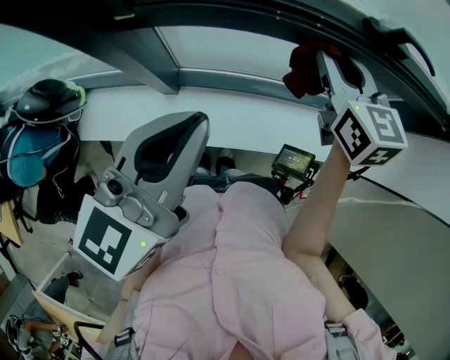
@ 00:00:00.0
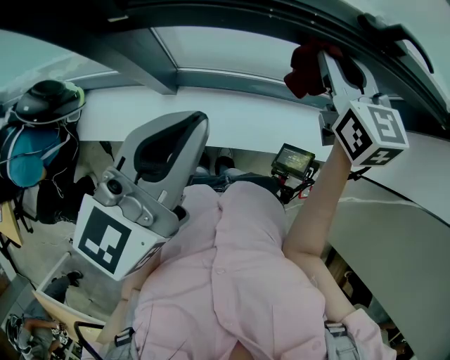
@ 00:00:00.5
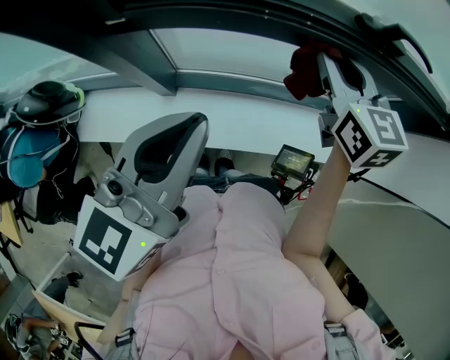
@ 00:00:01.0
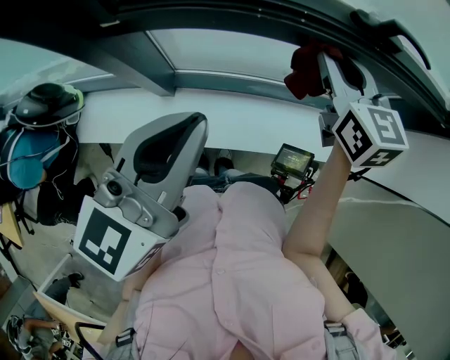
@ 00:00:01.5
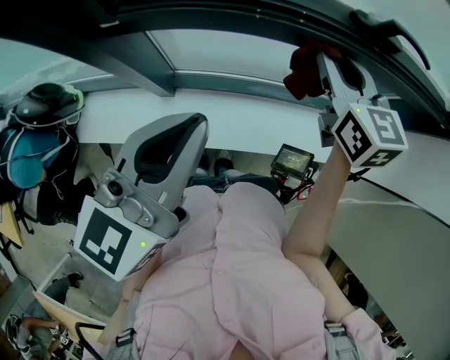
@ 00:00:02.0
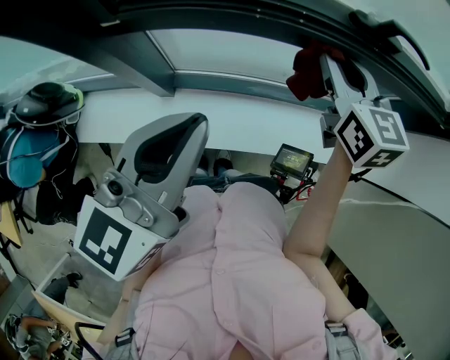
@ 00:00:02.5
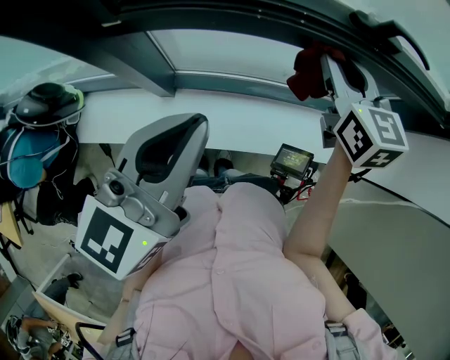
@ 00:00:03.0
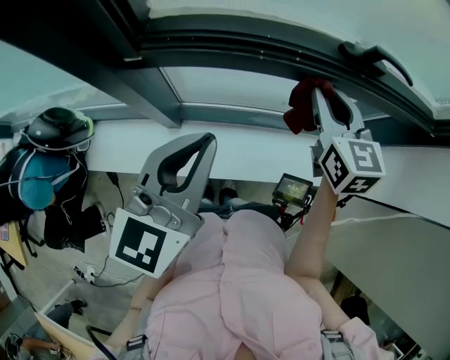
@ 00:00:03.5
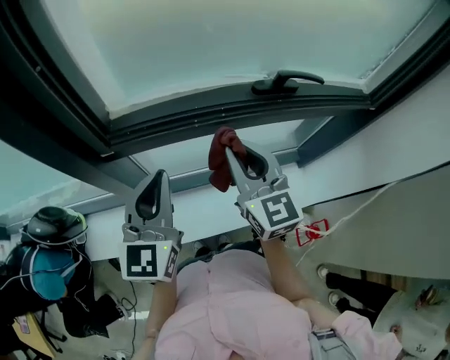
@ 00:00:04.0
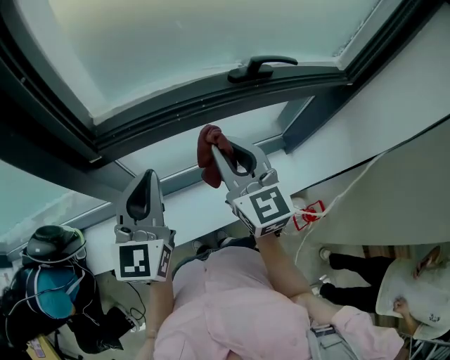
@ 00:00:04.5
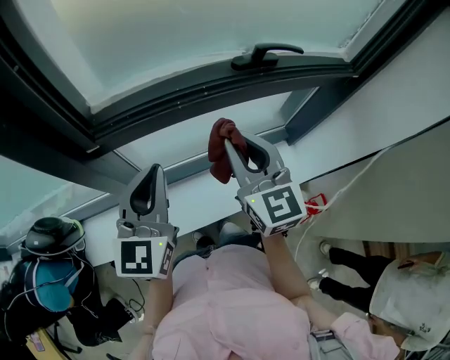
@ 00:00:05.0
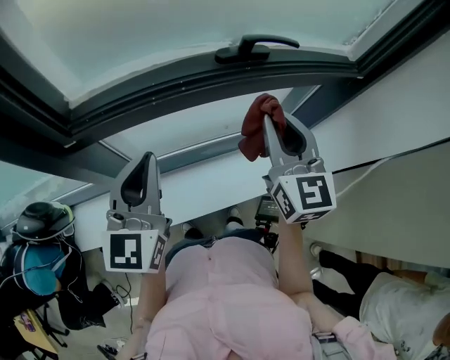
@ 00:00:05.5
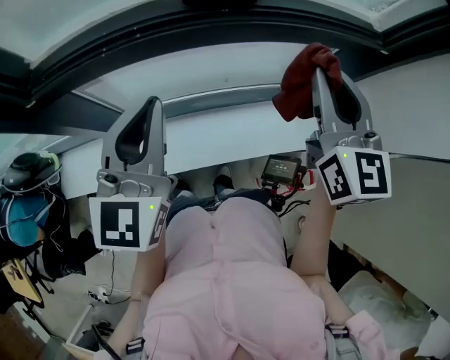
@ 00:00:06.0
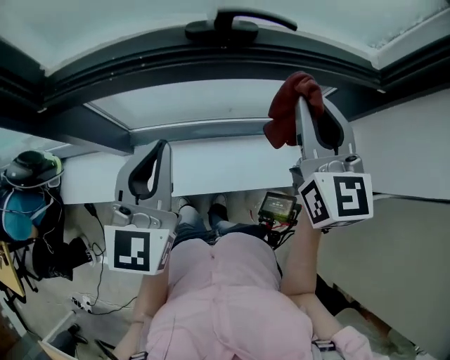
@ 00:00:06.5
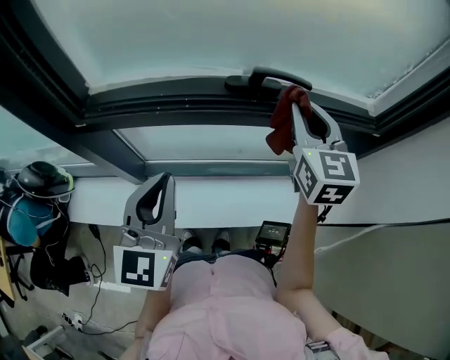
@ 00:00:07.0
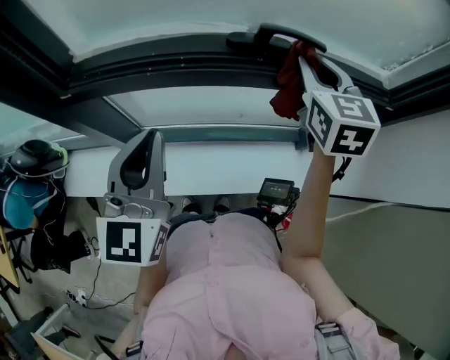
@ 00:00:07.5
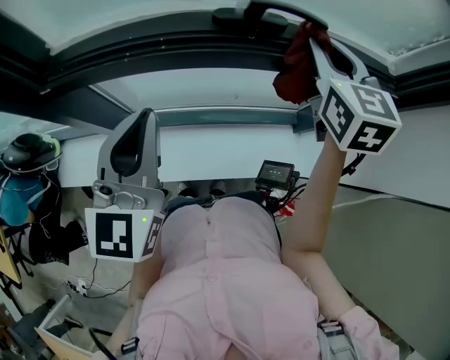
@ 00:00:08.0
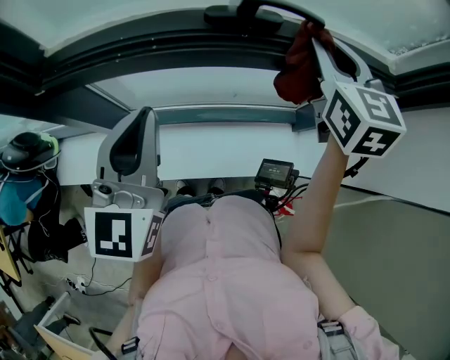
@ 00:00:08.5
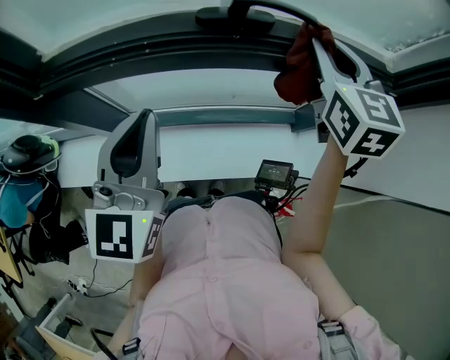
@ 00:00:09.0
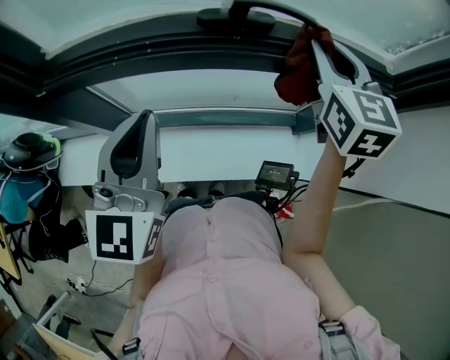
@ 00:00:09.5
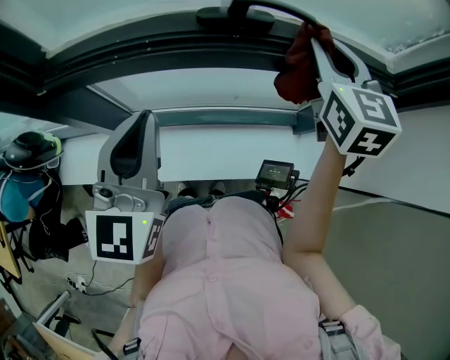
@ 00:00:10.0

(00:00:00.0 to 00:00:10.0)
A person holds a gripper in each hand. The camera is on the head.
00:00:00.0 - 00:00:02.0: Both grippers stay about where they are.
00:00:02.0 - 00:00:04.0: The left gripper travels forward by some 5 cm. Meanwhile the right gripper moves backward and to the left, about 10 cm.
00:00:04.0 - 00:00:06.0: The left gripper travels to the right by about 15 cm; the right gripper goes some 25 cm to the right.
00:00:06.0 - 00:00:08.0: The right gripper travels forward by approximately 15 cm.
00:00:08.0 - 00:00:10.0: The grippers move only a little.

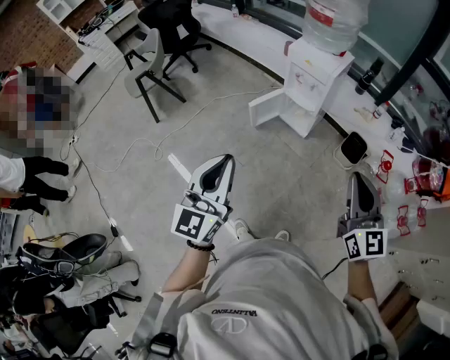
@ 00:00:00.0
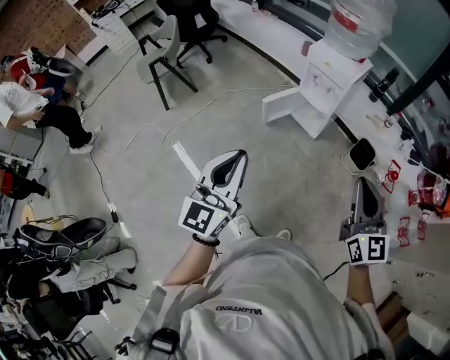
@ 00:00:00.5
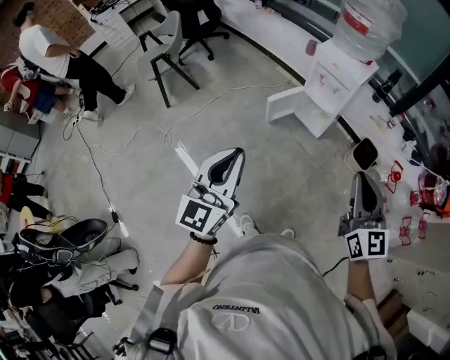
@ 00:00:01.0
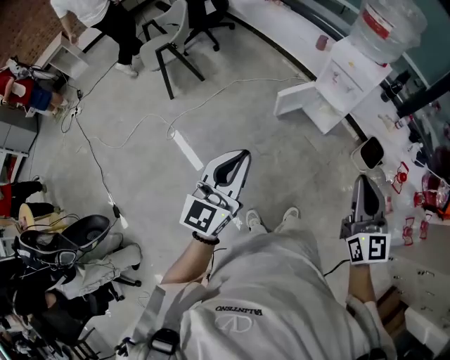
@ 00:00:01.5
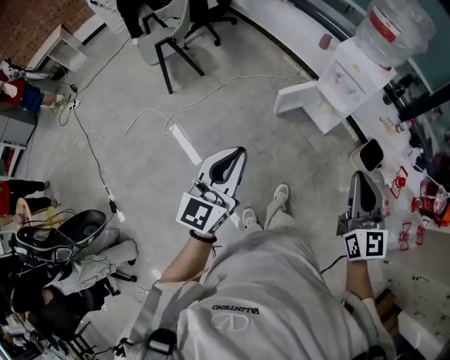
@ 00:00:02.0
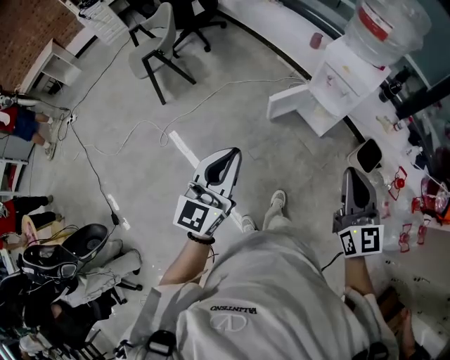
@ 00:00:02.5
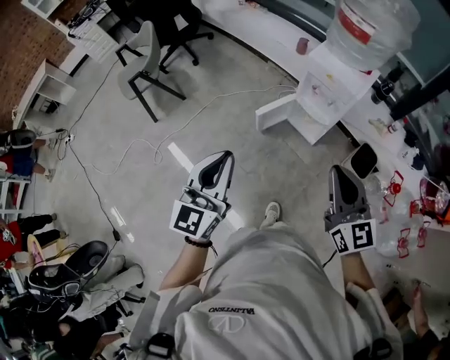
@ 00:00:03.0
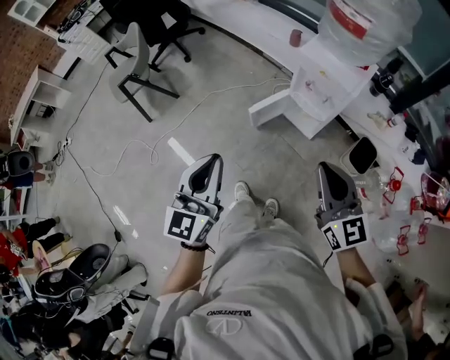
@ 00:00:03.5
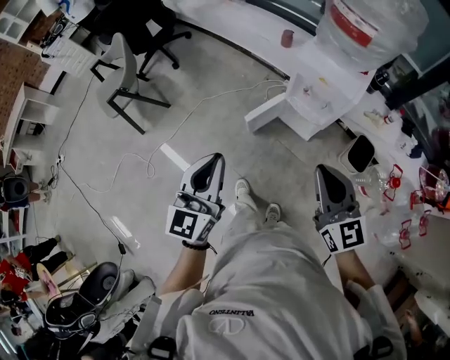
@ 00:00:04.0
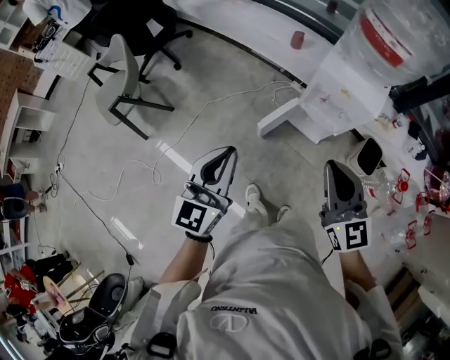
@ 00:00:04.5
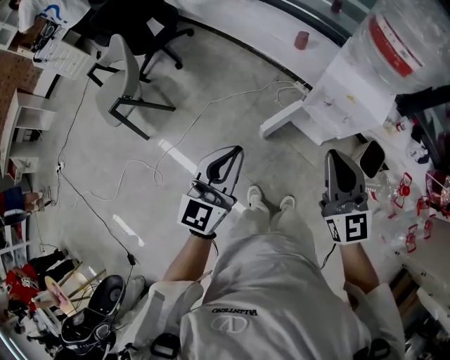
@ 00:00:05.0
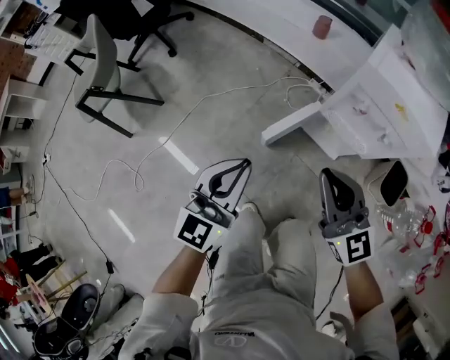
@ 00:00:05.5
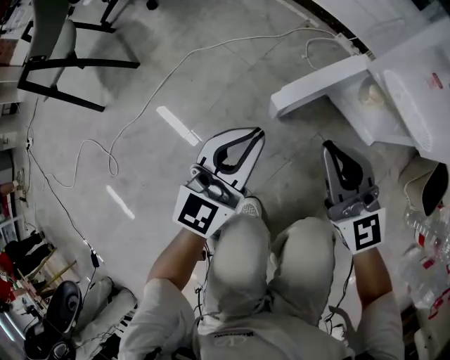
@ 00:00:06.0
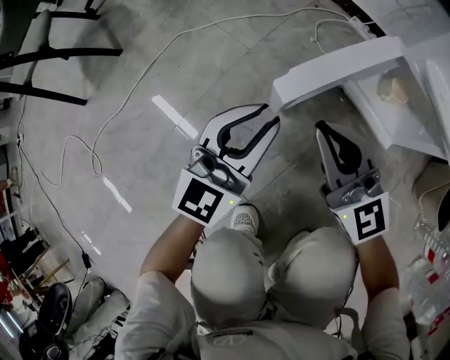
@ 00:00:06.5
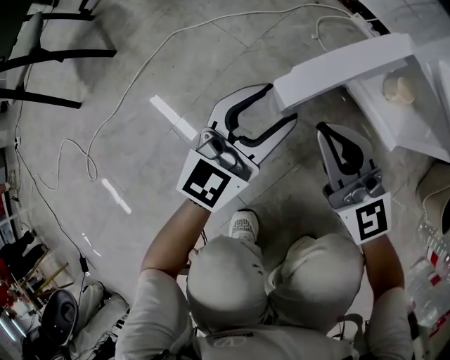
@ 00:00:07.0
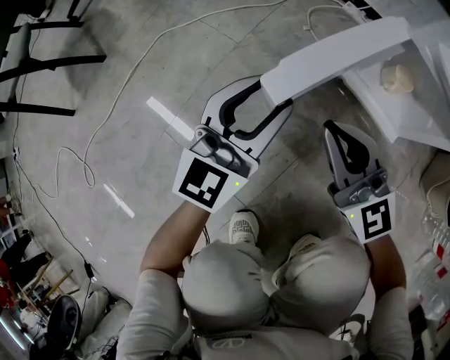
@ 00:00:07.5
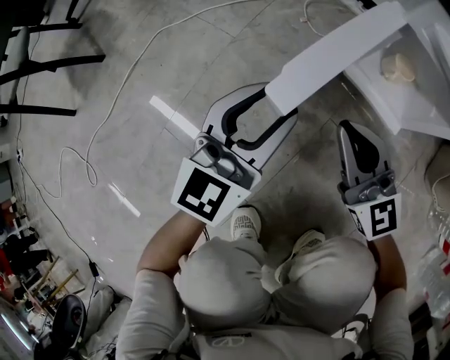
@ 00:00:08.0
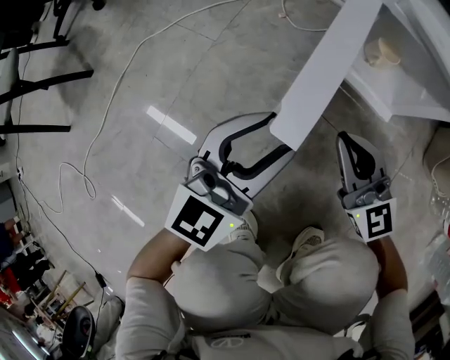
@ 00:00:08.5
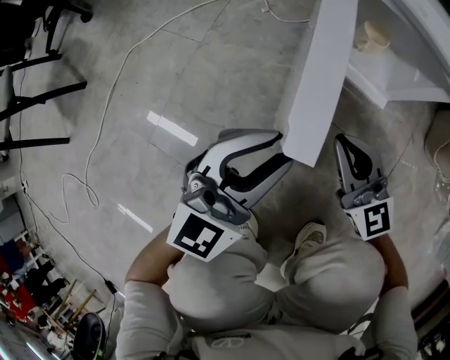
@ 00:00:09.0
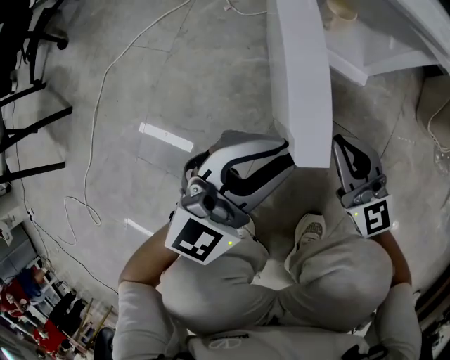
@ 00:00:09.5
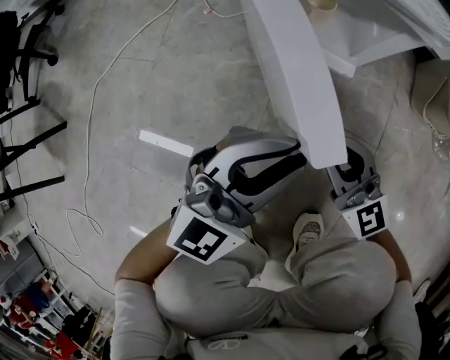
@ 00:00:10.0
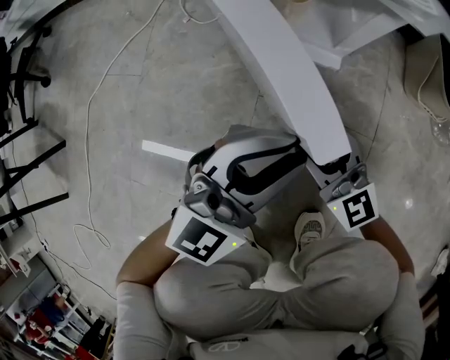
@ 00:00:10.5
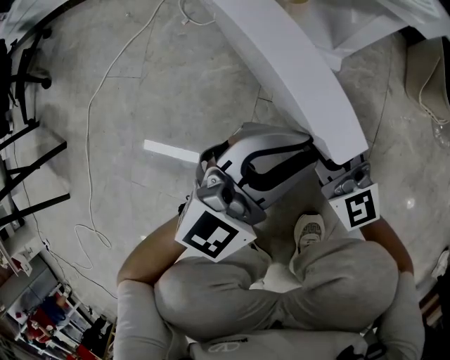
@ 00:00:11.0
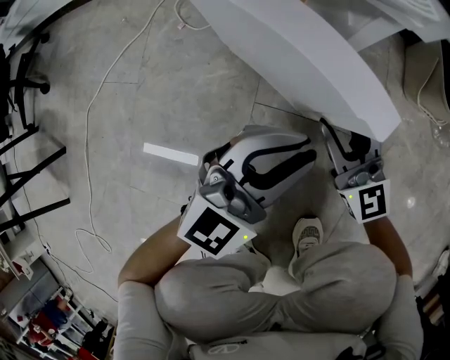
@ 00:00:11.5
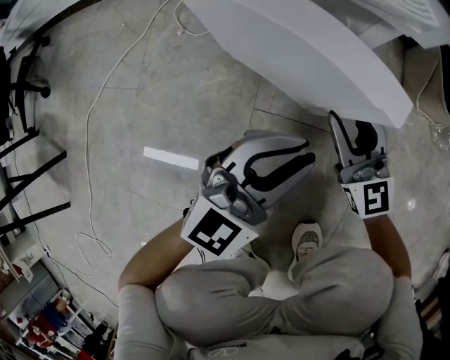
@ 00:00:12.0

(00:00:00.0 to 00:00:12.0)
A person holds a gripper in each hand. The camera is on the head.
00:00:00.0 - 00:00:02.0: Both grippers move to the left, roughly 15 cm.
00:00:02.0 - 00:00:04.0: The two grippers go roughly 25 cm forward.
00:00:04.0 - 00:00:06.0: Both grippers move downward and forward, roughly 60 cm.
00:00:06.0 - 00:00:08.0: Both grippers move downward, about 20 cm. The left gripper opens its fingers.
00:00:08.0 - 00:00:10.0: The right gripper heads to the right, downward and backward, covering some 20 cm. Meanwhile the left gripper travels to the right by roughly 20 cm, rotates approximately 40 degrees, and closes.
00:00:10.0 - 00:00:12.0: The right gripper goes roughly 10 cm forward and to the right, and opens its fingers. The left gripper heads to the right, covering approximately 5 cm.

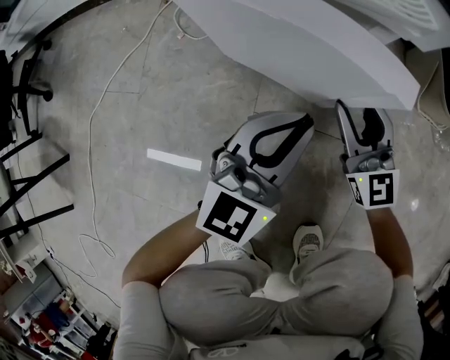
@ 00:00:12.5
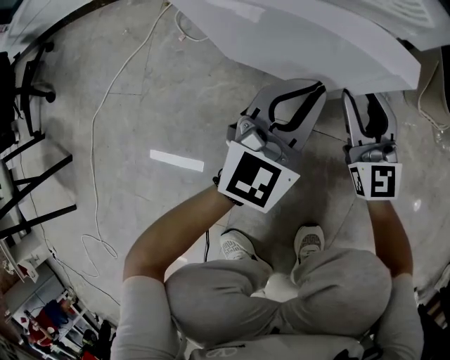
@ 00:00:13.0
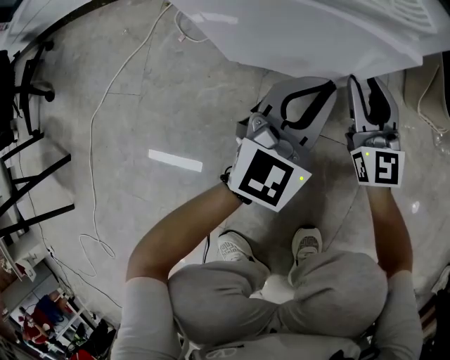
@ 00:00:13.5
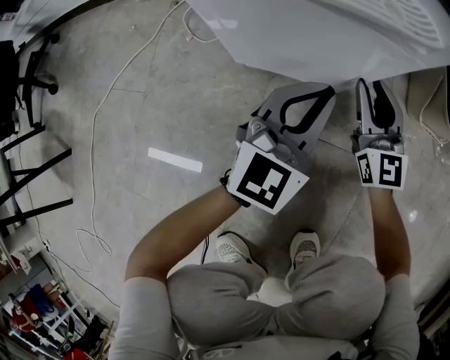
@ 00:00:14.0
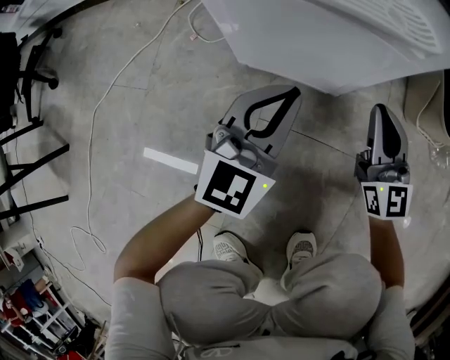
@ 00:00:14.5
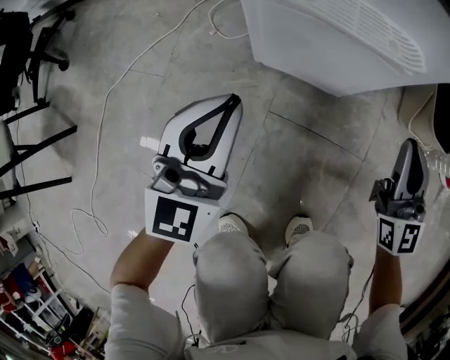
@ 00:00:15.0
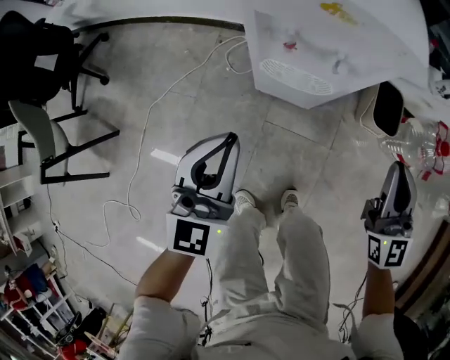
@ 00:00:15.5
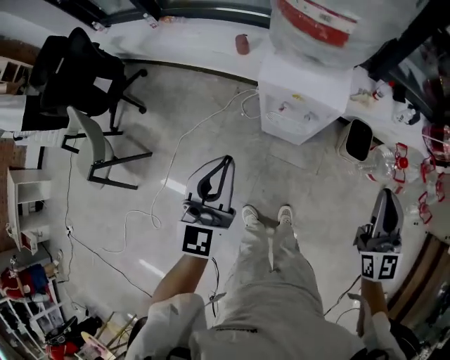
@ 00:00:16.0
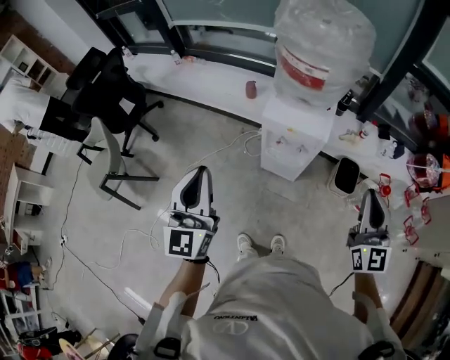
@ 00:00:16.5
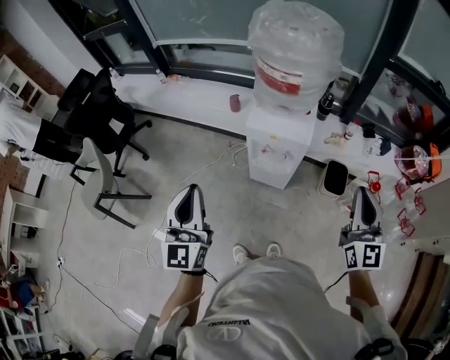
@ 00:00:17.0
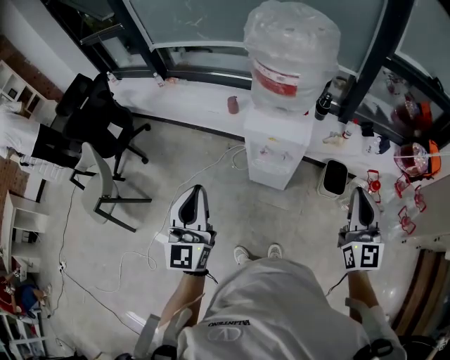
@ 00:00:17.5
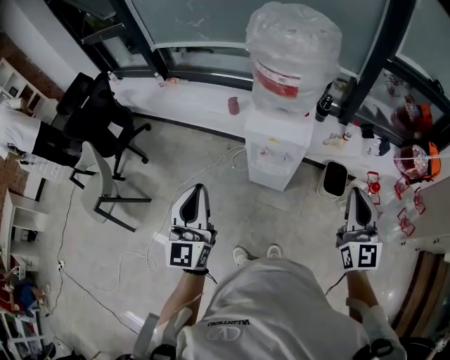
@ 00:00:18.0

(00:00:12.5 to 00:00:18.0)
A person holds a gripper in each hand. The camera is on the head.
00:00:12.5 - 00:00:14.5: The left gripper shifts by approximately 5 cm; the right gripper moves some 5 cm, and closes up.
00:00:14.5 - 00:00:16.0: Both grippers travel together upward, approximately 80 cm. The left gripper rotates some 20 degrees.
00:00:16.0 - 00:00:18.0: The two grippers go roughly 15 cm upward and backward.
